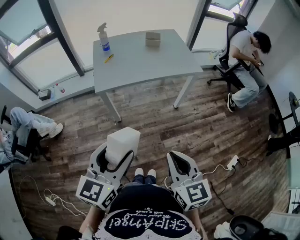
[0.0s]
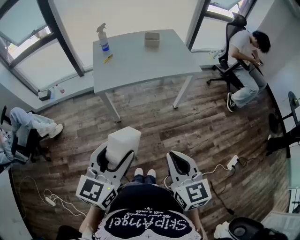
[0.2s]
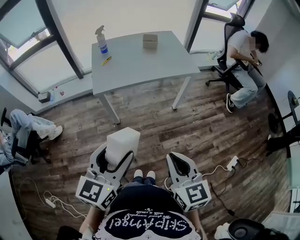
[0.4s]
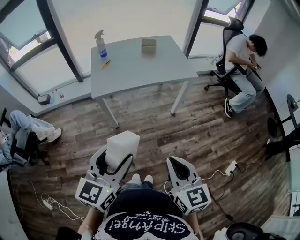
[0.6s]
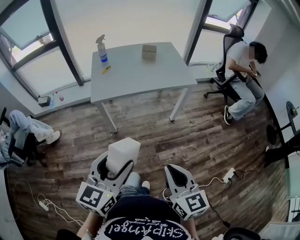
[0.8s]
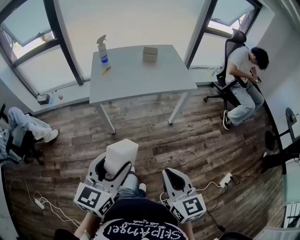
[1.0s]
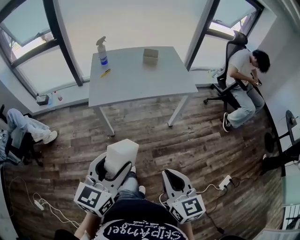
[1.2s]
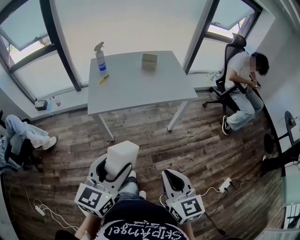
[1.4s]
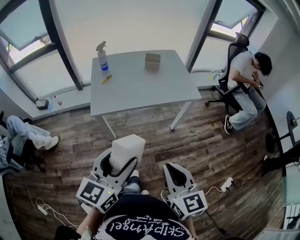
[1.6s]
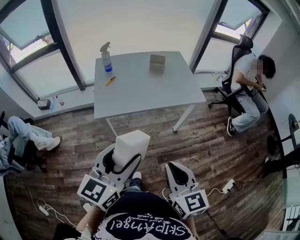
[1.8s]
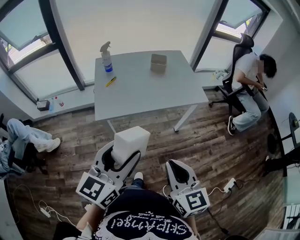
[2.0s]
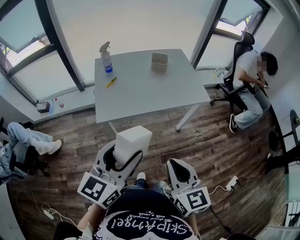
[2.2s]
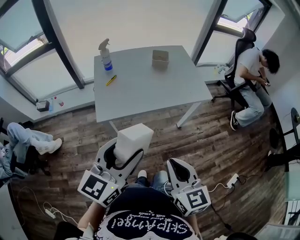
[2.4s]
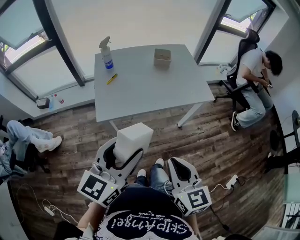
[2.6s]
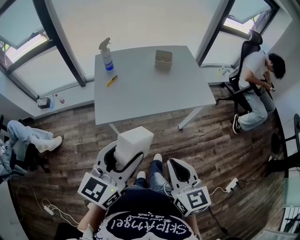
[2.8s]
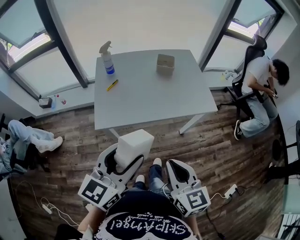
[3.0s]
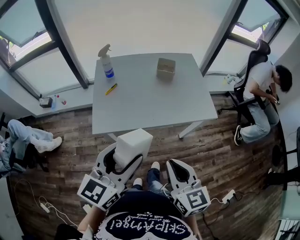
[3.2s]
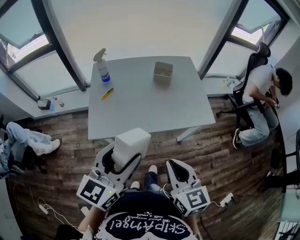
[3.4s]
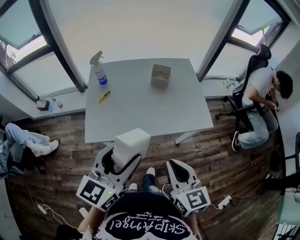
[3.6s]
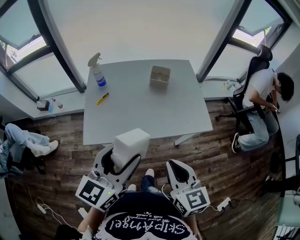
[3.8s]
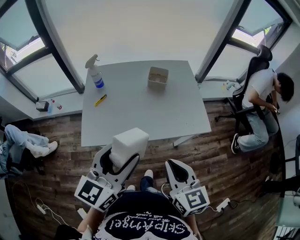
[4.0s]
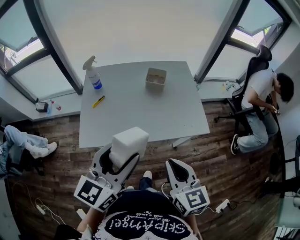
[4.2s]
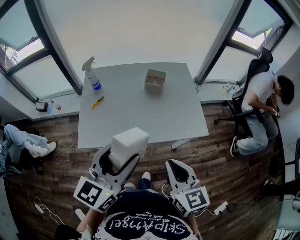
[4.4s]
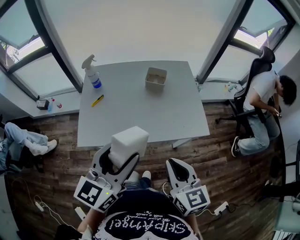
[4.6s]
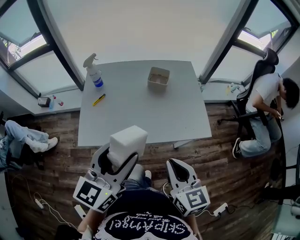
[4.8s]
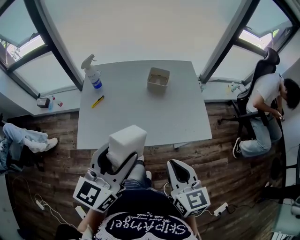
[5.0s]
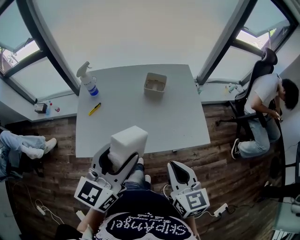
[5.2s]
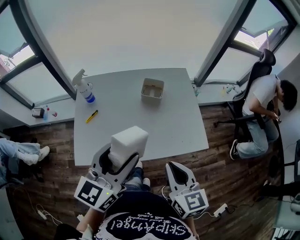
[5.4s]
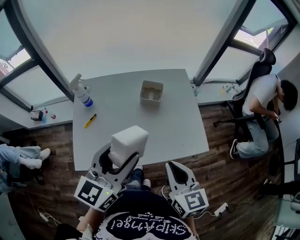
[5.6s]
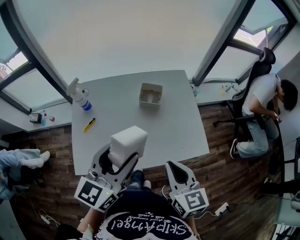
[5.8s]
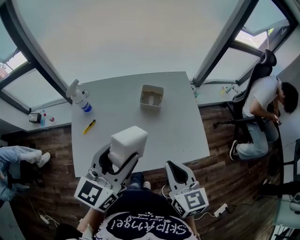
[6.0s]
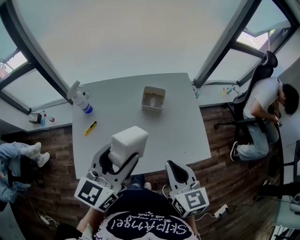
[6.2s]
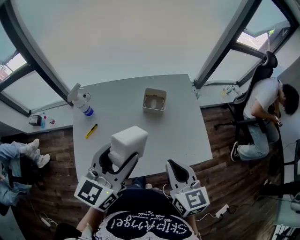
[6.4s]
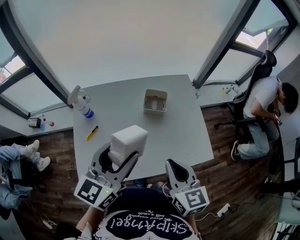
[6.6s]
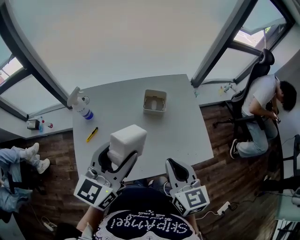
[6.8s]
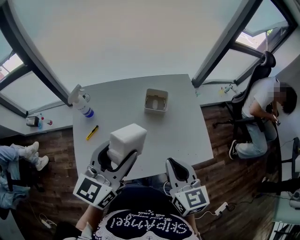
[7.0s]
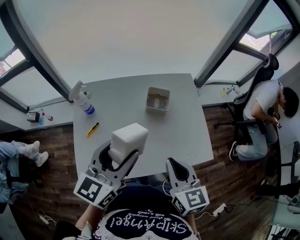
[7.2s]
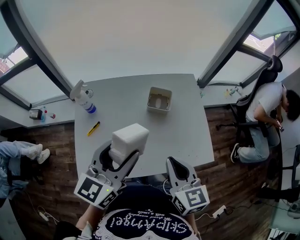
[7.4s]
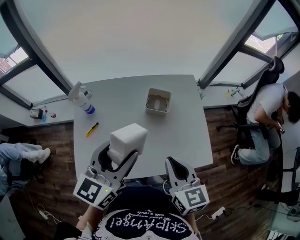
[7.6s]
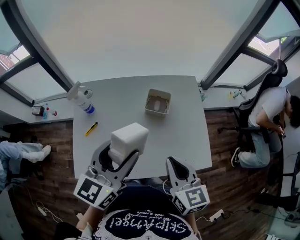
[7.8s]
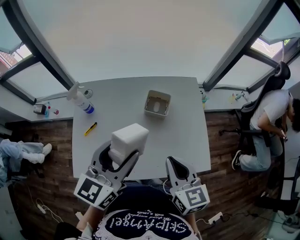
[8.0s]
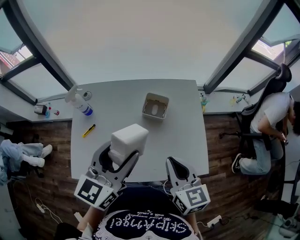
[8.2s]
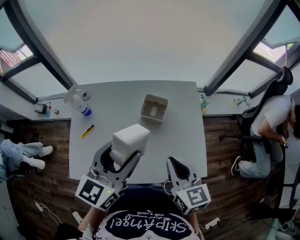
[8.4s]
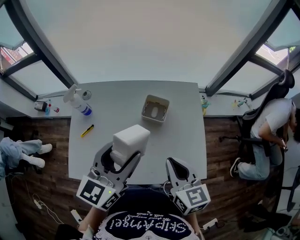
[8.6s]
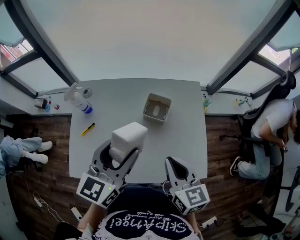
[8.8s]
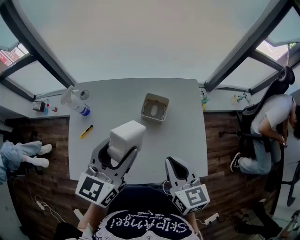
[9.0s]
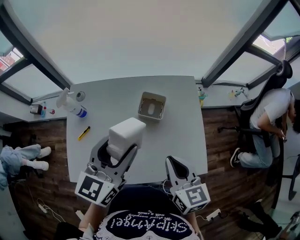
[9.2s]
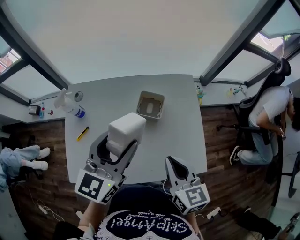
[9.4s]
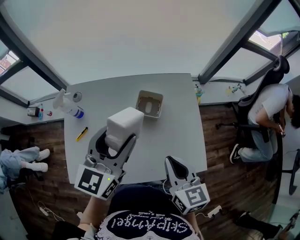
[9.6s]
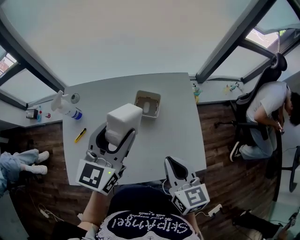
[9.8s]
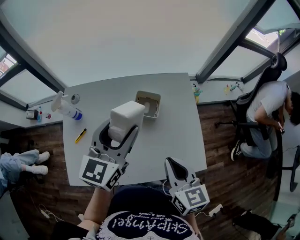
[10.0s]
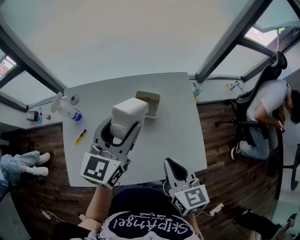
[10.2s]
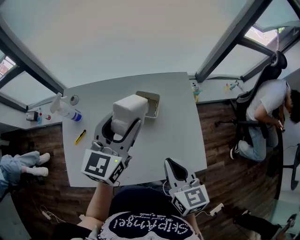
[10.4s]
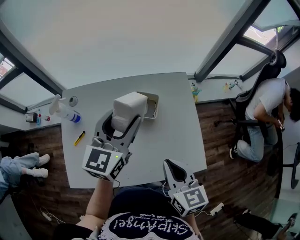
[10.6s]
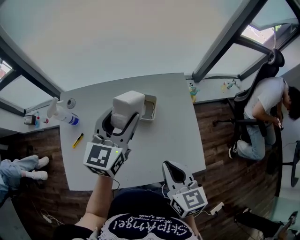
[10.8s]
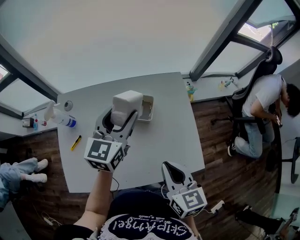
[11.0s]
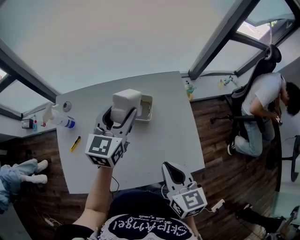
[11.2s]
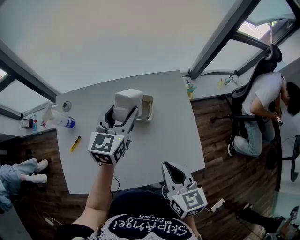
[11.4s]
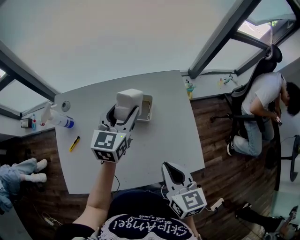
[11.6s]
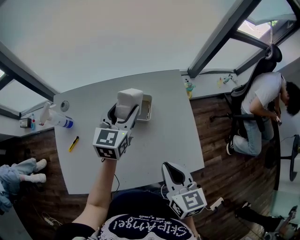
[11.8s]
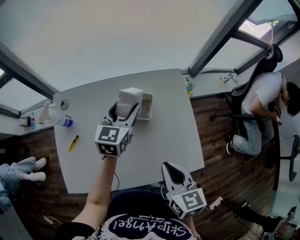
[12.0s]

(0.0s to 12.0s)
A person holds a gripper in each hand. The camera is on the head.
0.0s - 1.6s: Both grippers move forward, approximately 10 cm.
1.6s - 3.0s: Both grippers travel together forward, approximately 15 cm.
3.0s - 4.4s: The grippers both shift forward and to the right by roughly 15 cm.
4.4s - 6.0s: The grippers both shift forward by some 15 cm.
6.0s - 7.6s: The right gripper is displaced forward by roughly 5 cm.
7.6s - 9.0s: The two grippers go about 5 cm forward.
9.0s - 10.4s: The left gripper shifts some 10 cm forward.
10.4s - 12.0s: The left gripper goes roughly 15 cm downward and forward.

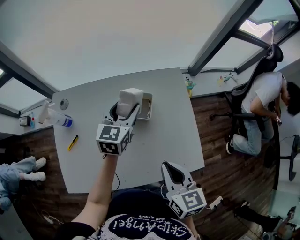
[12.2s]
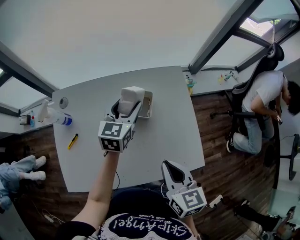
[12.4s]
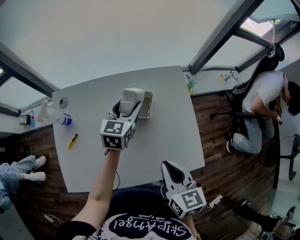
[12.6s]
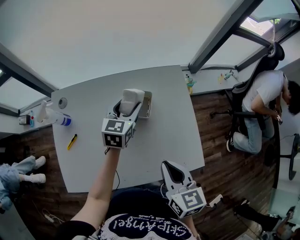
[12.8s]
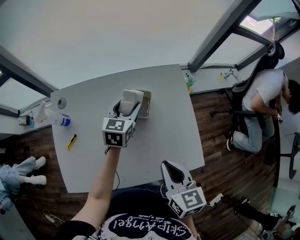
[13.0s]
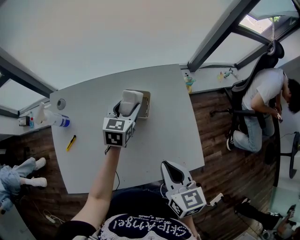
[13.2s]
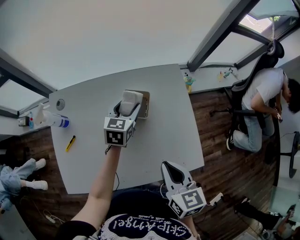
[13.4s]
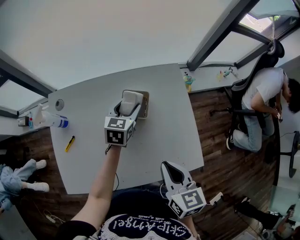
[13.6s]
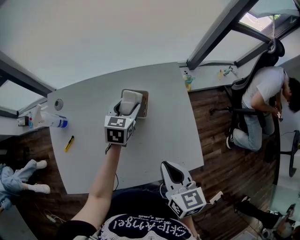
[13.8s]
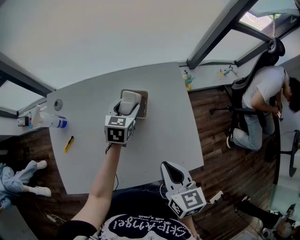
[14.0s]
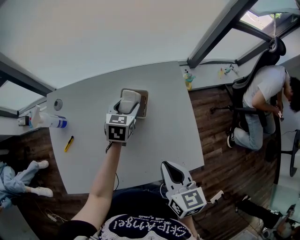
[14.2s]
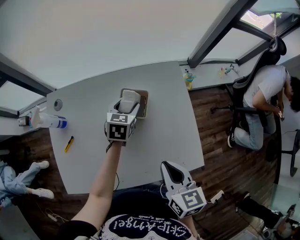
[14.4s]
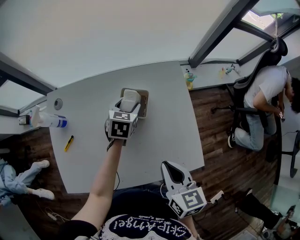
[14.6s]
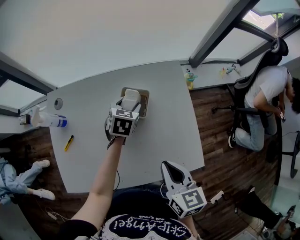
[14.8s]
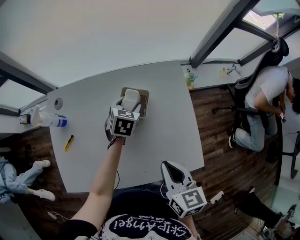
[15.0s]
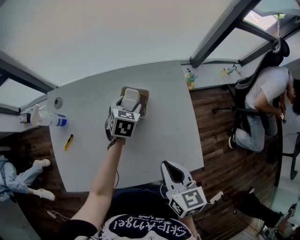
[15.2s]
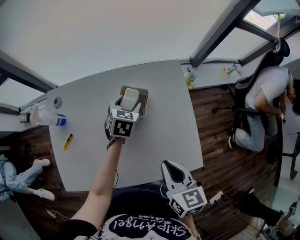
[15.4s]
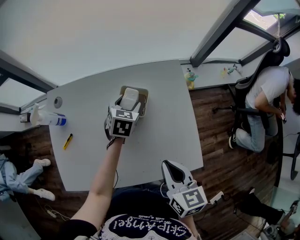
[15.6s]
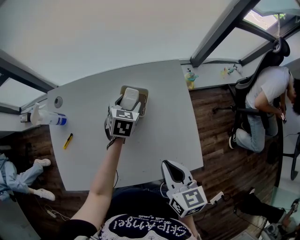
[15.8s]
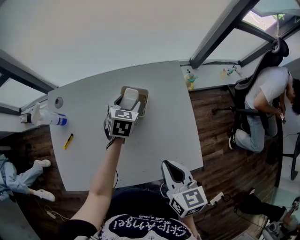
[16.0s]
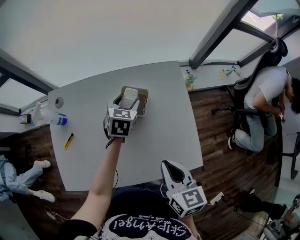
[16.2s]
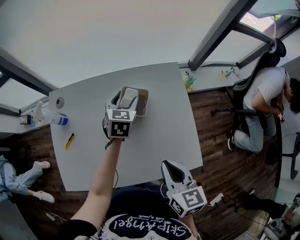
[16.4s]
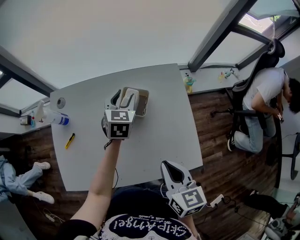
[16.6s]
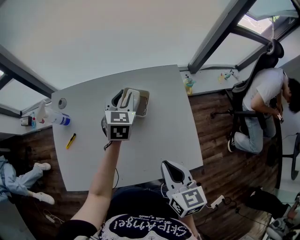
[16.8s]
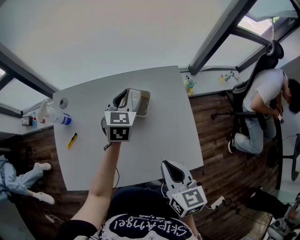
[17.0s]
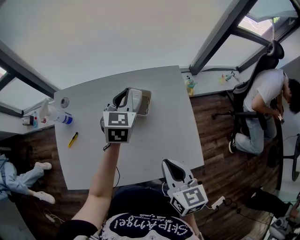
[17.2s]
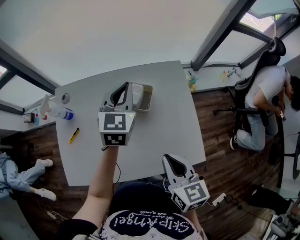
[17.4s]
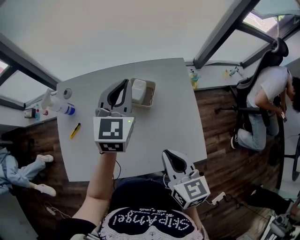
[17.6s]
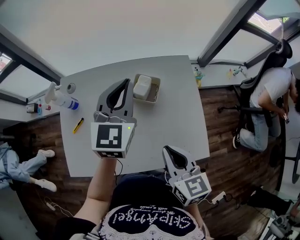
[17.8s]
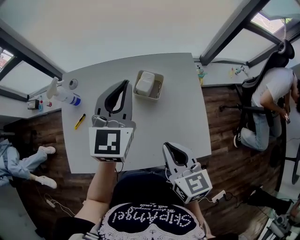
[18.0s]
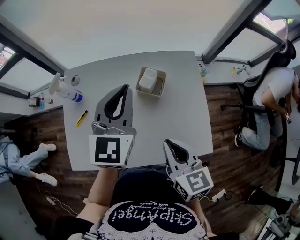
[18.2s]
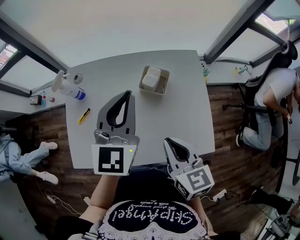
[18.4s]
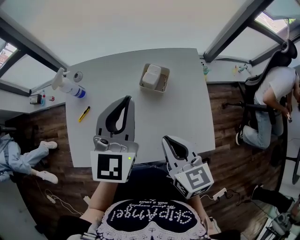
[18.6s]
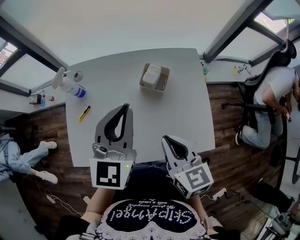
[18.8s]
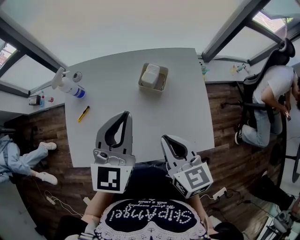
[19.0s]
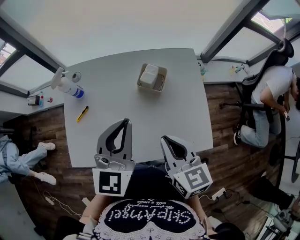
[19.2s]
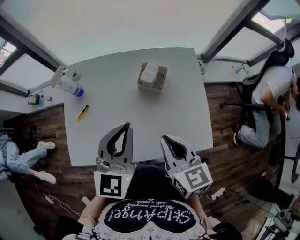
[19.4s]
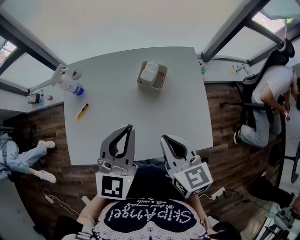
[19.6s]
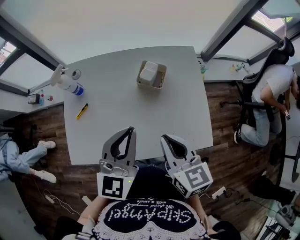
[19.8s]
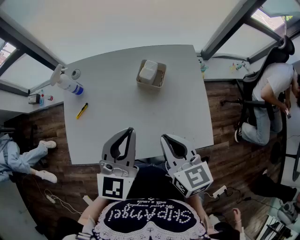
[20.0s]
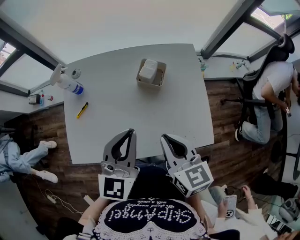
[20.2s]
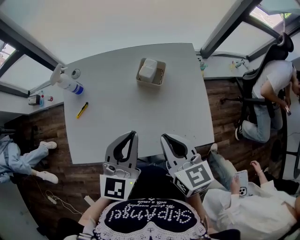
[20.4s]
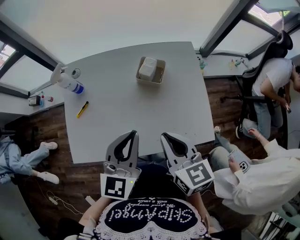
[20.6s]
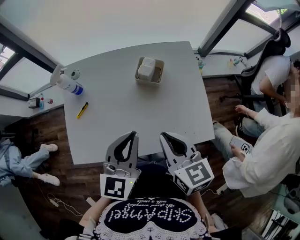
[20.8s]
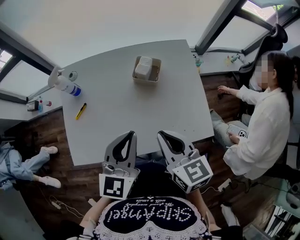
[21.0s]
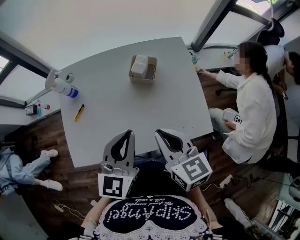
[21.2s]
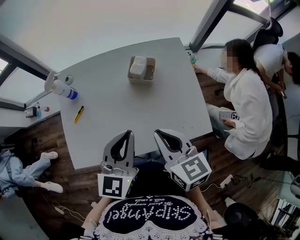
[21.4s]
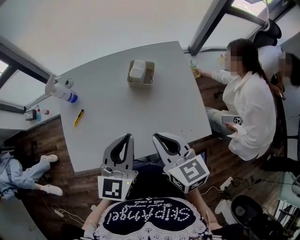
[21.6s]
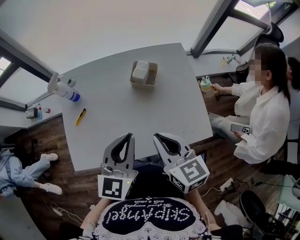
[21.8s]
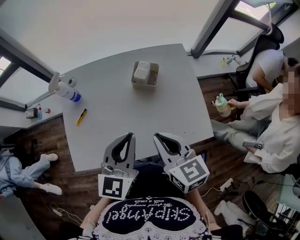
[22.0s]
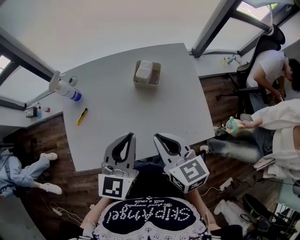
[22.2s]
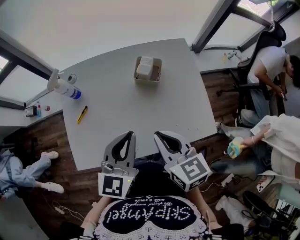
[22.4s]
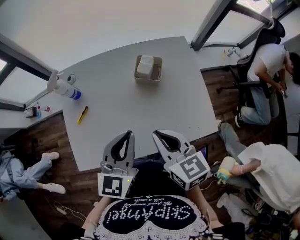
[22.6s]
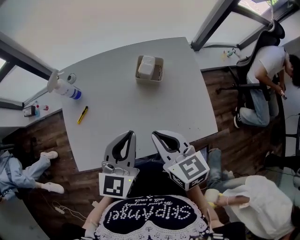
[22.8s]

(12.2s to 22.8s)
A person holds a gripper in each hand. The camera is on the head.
12.2s - 13.8s: The left gripper goes about 10 cm downward.
13.8s - 15.2s: The grippers stay close to where they were, moving slightly.
15.2s - 16.8s: The left gripper travels upward by some 10 cm, and closes.
16.8s - 18.2s: The right gripper moves about 5 cm, while the left gripper is displaced upward and backward by roughly 20 cm, turns by roughly 20 degrees, and closes up.
18.2s - 19.8s: The left gripper goes some 15 cm backward.
19.8s - 21.2s: There are only small adjustments of the grippers.
21.2s - 22.8s: The right gripper shifts by roughly 5 cm.

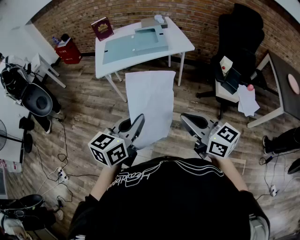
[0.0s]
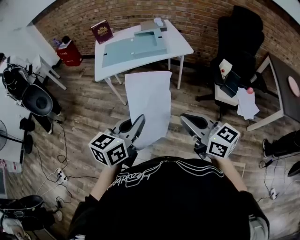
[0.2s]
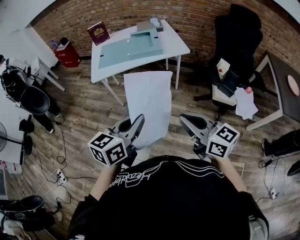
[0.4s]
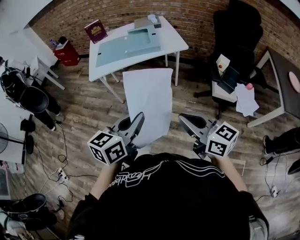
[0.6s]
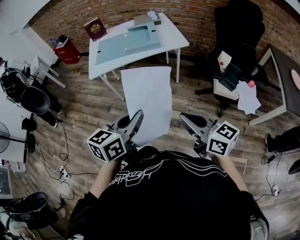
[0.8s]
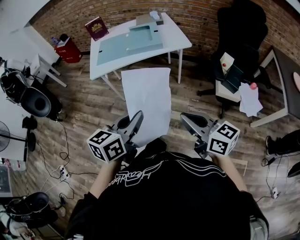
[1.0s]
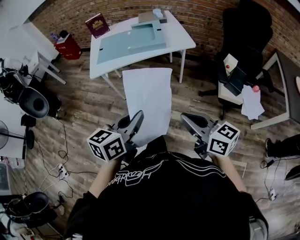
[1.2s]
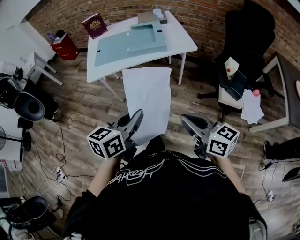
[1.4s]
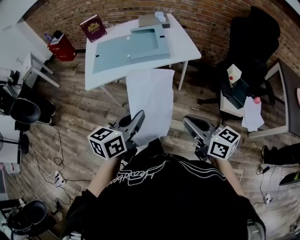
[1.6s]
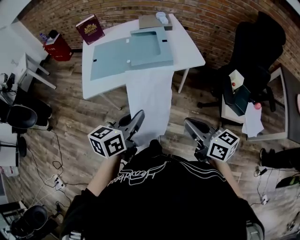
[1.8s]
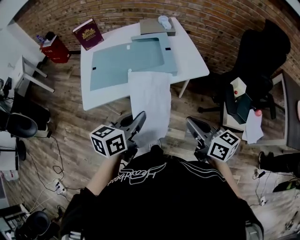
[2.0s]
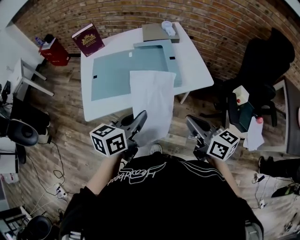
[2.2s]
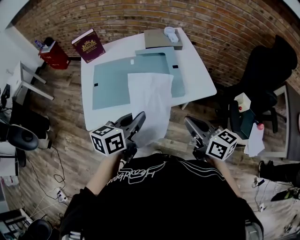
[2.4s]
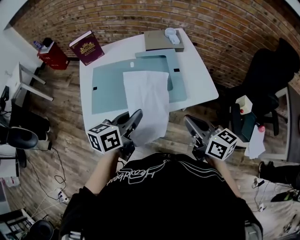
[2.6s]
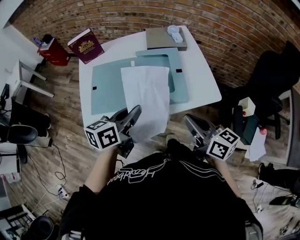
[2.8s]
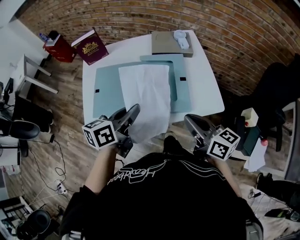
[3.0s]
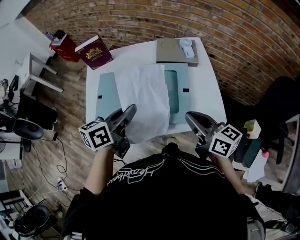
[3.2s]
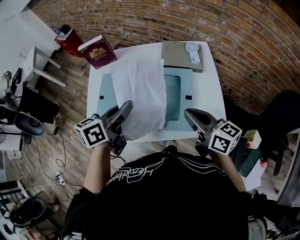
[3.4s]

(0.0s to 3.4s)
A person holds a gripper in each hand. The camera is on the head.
0.0s - 1.6s: The right gripper shifts some 20 cm forward and downward. The left gripper is displaced forward by roughly 20 cm.
1.6s - 3.4s: Both grippers are carried forward, some 50 cm.
